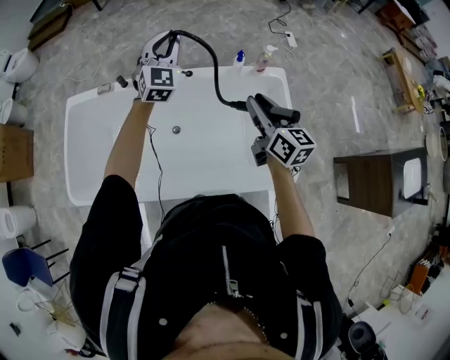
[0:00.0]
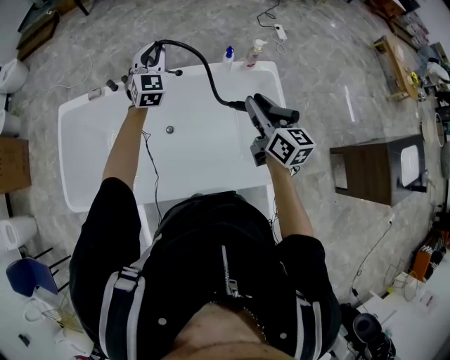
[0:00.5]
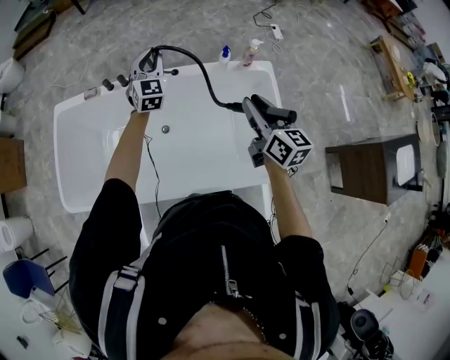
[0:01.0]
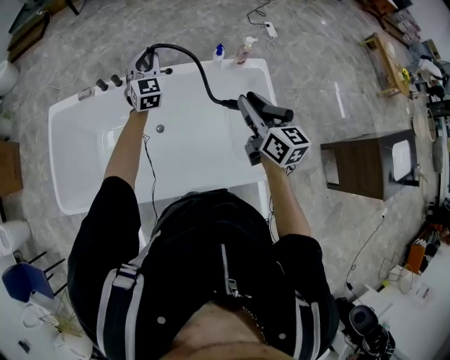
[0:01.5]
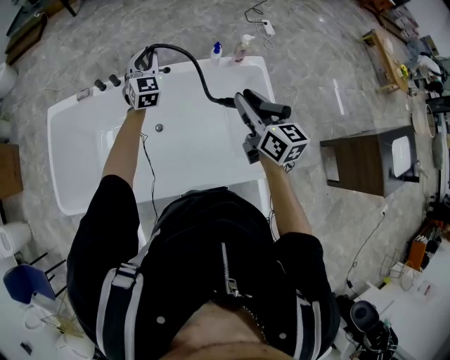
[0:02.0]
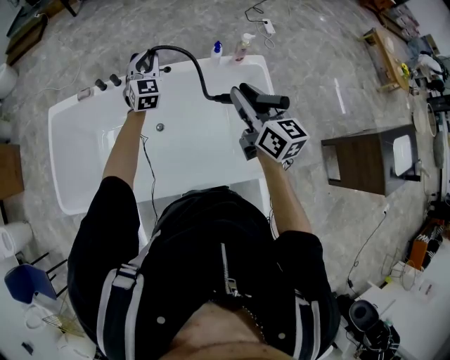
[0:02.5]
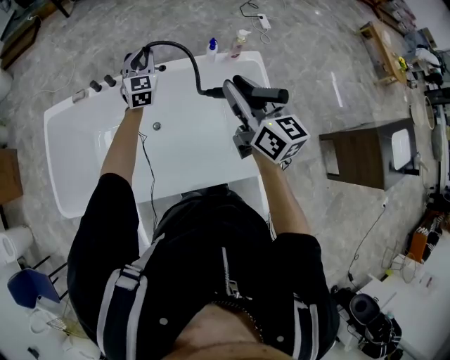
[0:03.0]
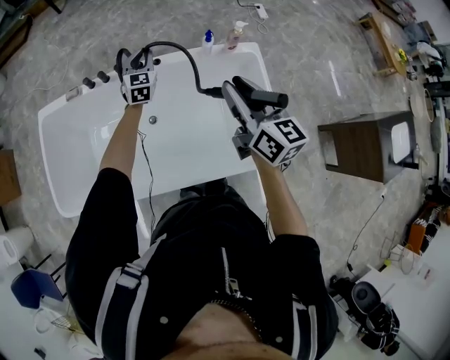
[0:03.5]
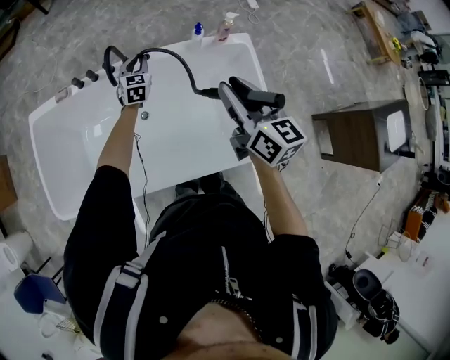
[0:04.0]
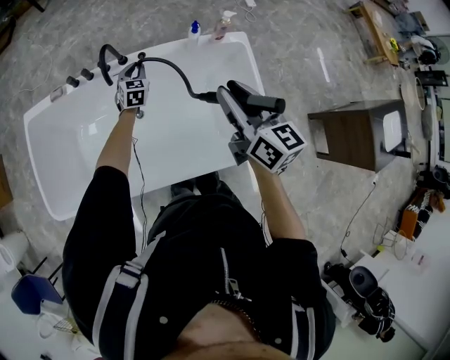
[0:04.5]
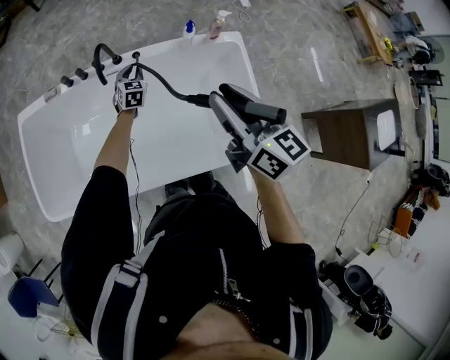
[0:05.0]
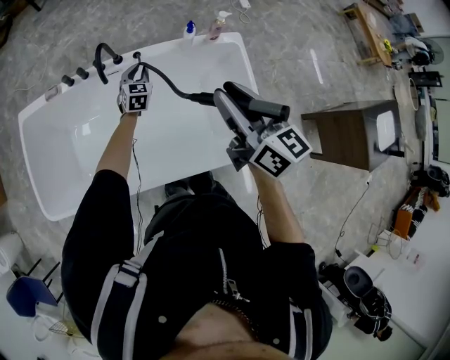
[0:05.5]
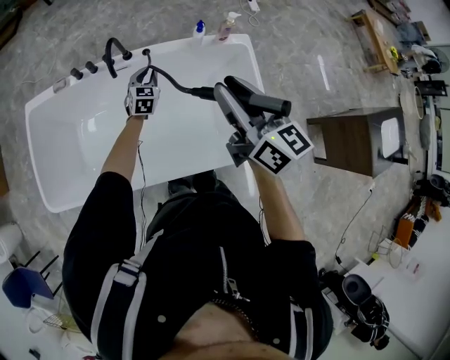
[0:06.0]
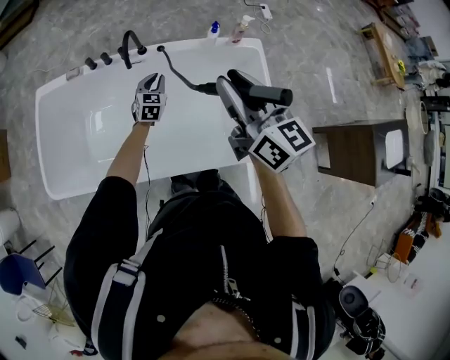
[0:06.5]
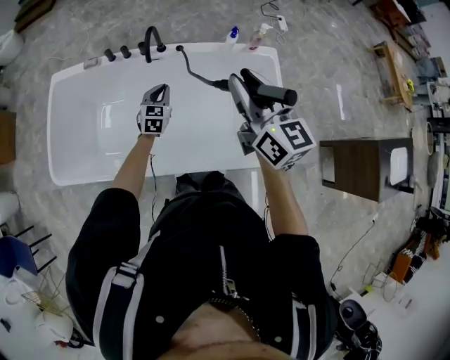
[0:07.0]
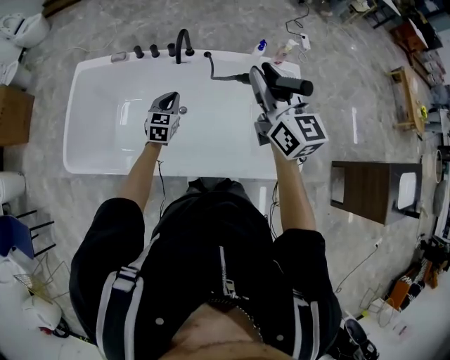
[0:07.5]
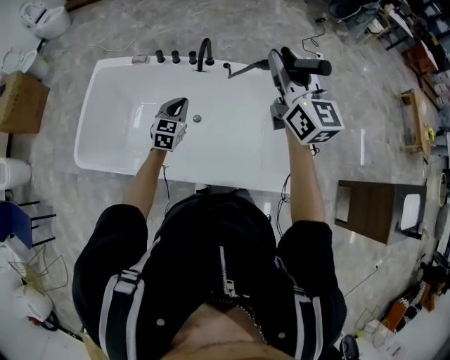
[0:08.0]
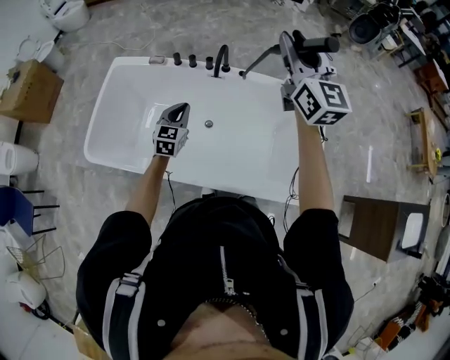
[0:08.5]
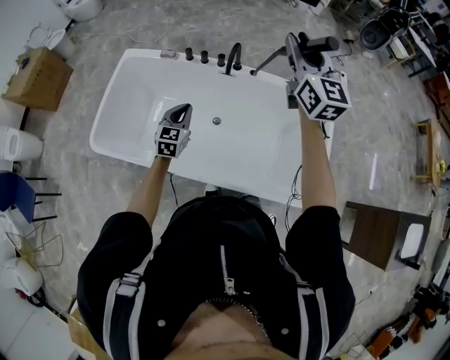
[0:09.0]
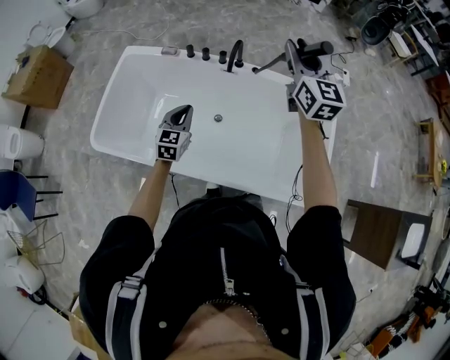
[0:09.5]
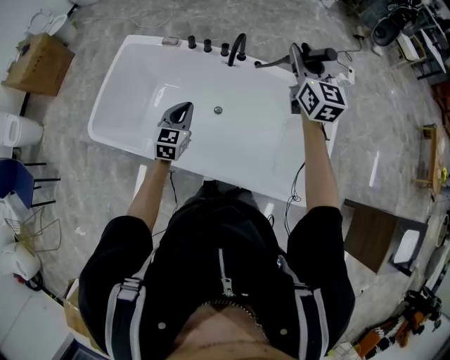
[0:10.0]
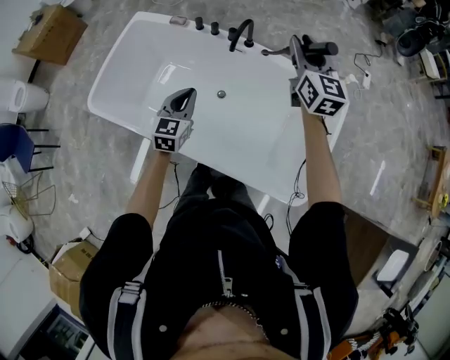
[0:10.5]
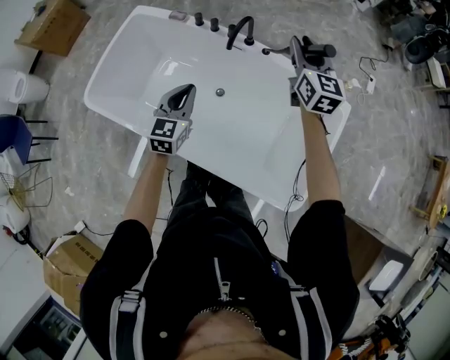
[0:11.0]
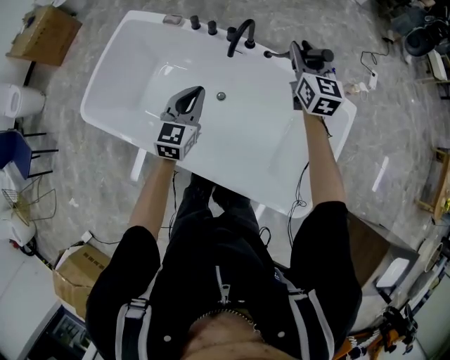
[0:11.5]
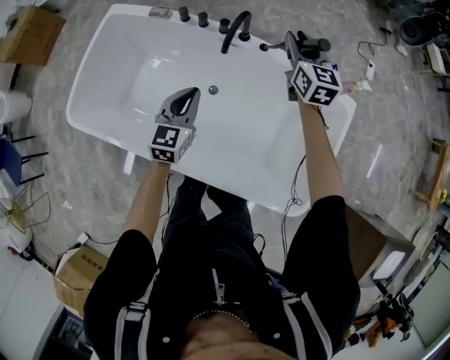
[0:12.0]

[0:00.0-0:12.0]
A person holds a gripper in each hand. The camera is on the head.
0:00.0 to 0:02.0: The left gripper travels downward by about 10 cm.
0:02.0 to 0:04.0: The left gripper is displaced downward by approximately 15 cm, and swivels approximately 20 degrees.
0:04.0 to 0:06.0: The right gripper shifts approximately 5 cm upward, while the left gripper is displaced backward by about 5 cm.
0:06.0 to 0:08.0: The left gripper goes roughly 25 cm to the left, backward and upward. Meanwhile the right gripper is displaced to the left, upward and forward by roughly 15 cm, and changes its angle by approximately 20 degrees.
0:08.0 to 0:10.0: The left gripper travels to the left by approximately 5 cm, while the right gripper moves forward and downward, roughly 15 cm.
0:10.0 to 0:12.0: The right gripper goes about 25 cm downward and forward. Meanwhile the left gripper heads to the right and forward, covering roughly 10 cm.

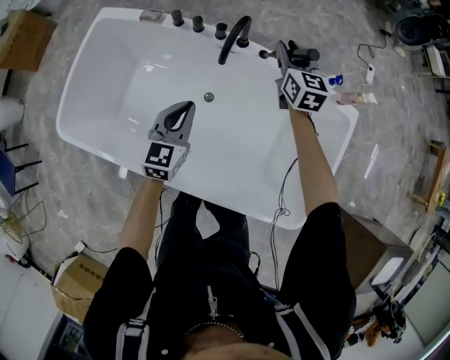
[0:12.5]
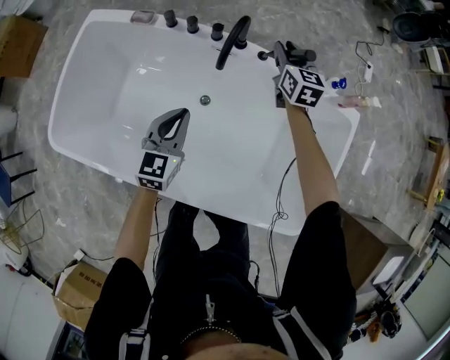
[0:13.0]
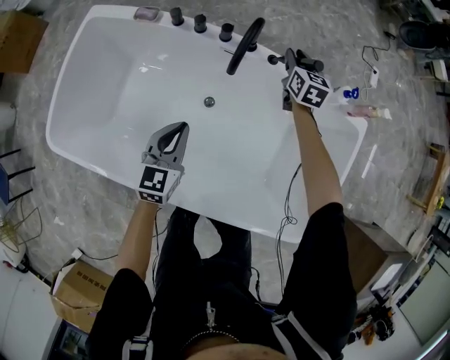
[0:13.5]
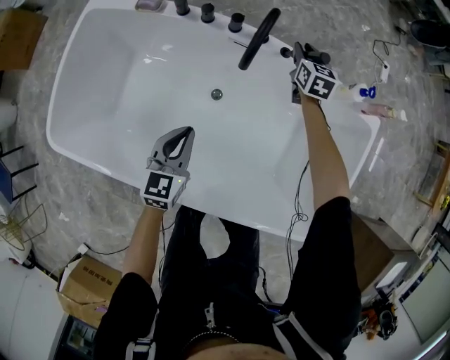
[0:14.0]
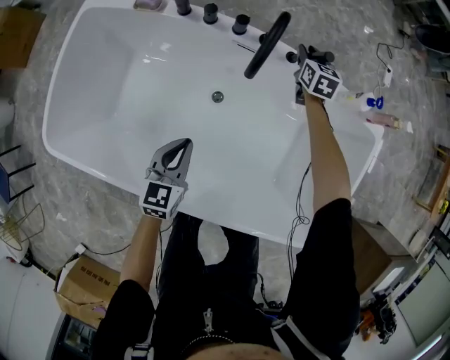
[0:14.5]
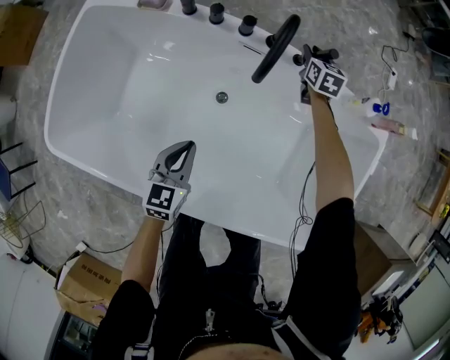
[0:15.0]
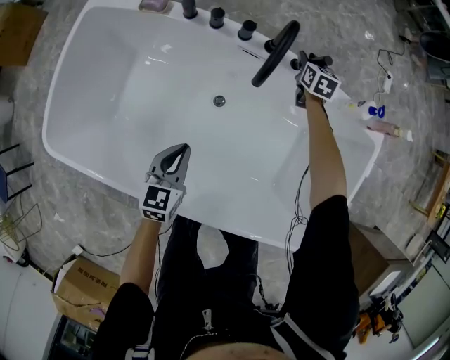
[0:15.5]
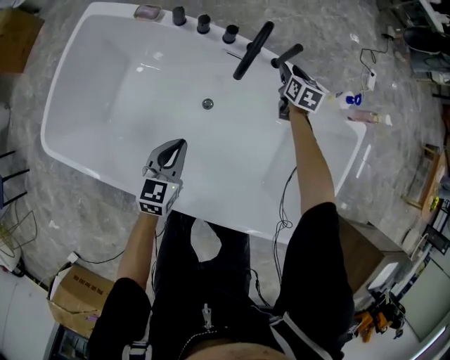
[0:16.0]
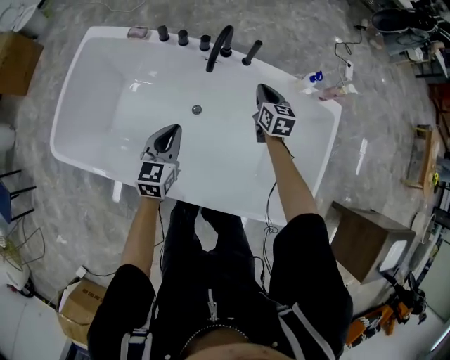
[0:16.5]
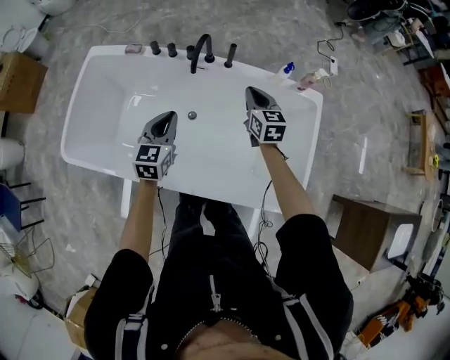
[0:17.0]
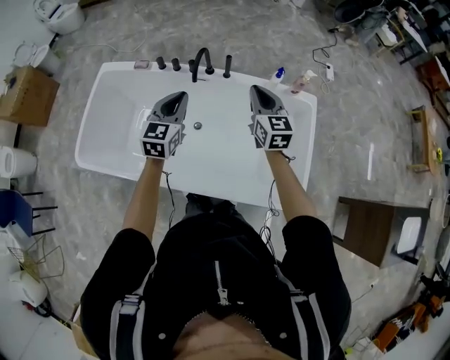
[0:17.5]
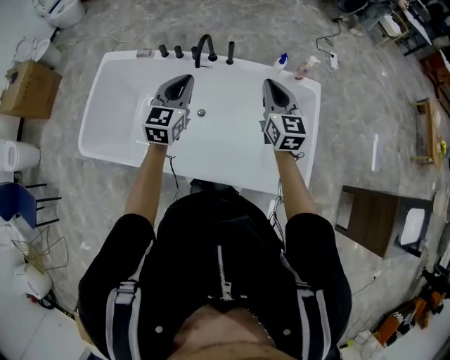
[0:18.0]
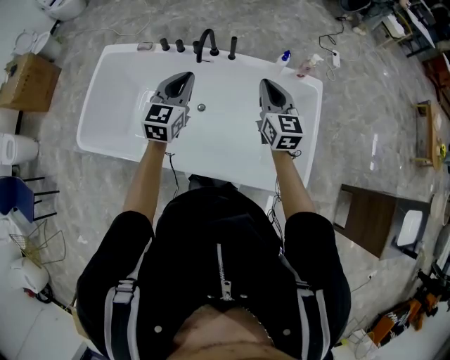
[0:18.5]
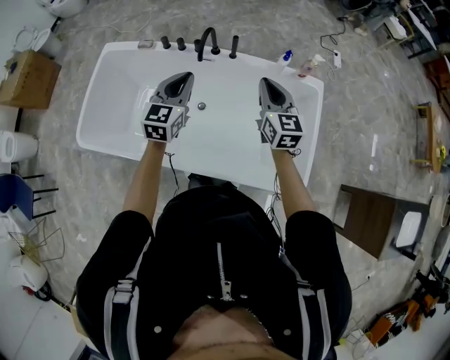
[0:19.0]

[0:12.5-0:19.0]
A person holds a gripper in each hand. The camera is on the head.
0:12.5 to 0:14.5: The right gripper travels downward and forward by roughly 25 cm; the left gripper is displaced downward by roughly 15 cm.
0:14.5 to 0:17.0: The left gripper moves upward, about 20 cm; the right gripper goes roughly 35 cm backward and upward, and closes up.
0:17.0 to 0:19.0: The left gripper travels upward by some 10 cm. The right gripper travels upward and backward by approximately 15 cm.

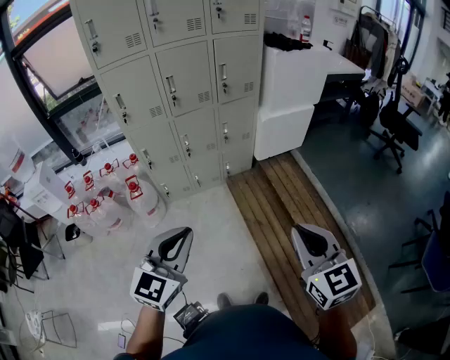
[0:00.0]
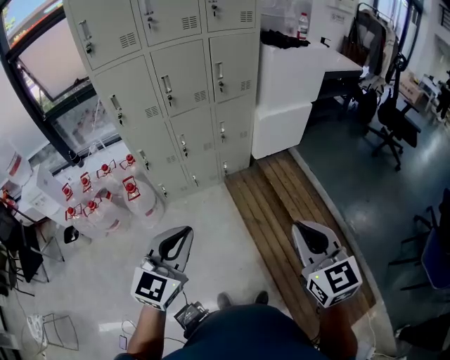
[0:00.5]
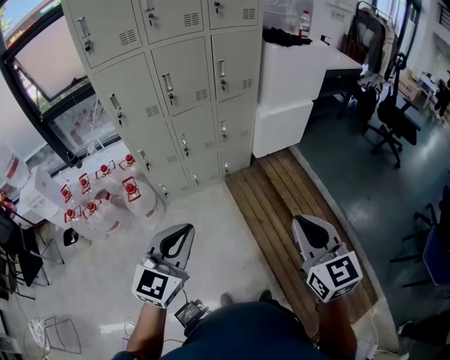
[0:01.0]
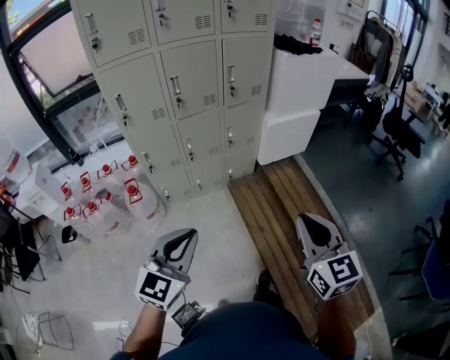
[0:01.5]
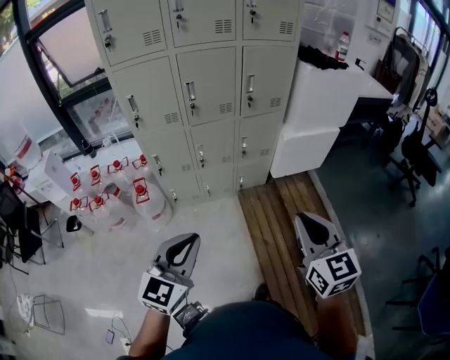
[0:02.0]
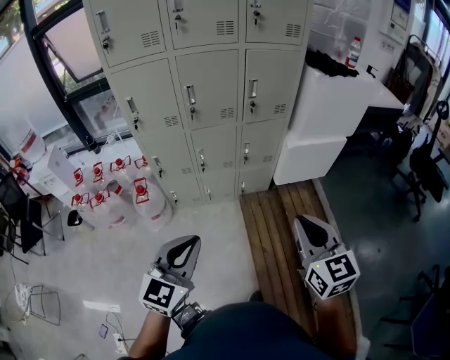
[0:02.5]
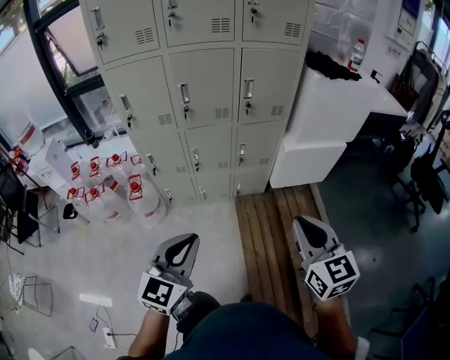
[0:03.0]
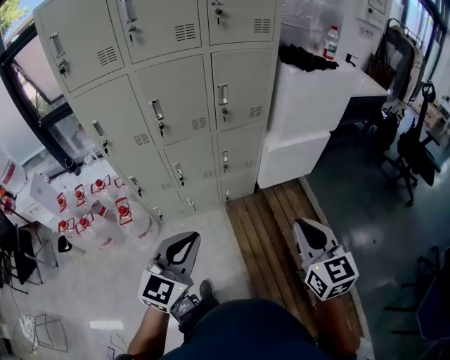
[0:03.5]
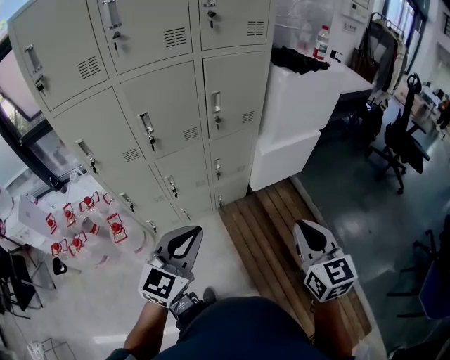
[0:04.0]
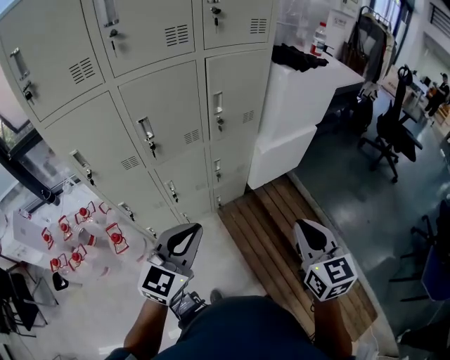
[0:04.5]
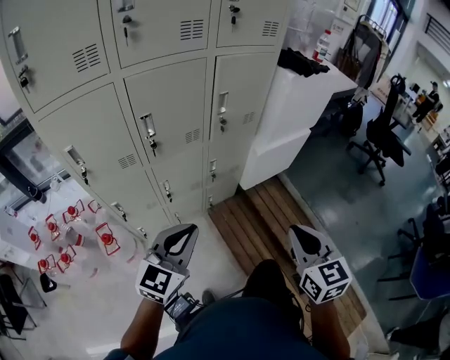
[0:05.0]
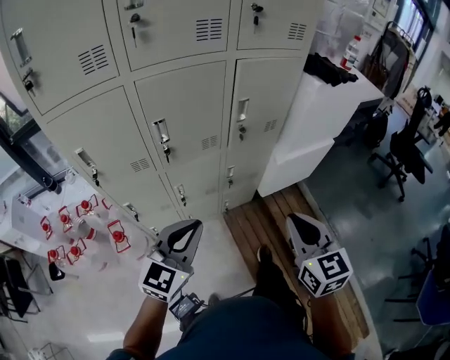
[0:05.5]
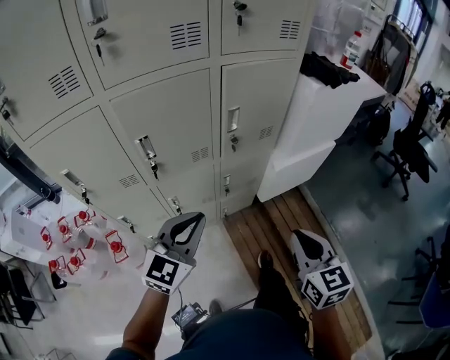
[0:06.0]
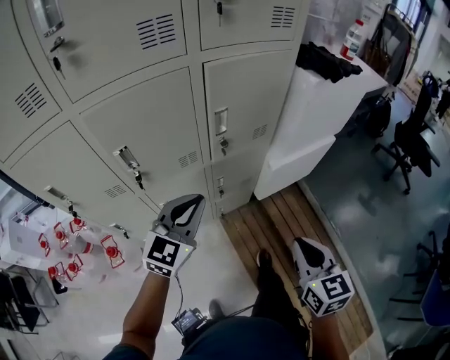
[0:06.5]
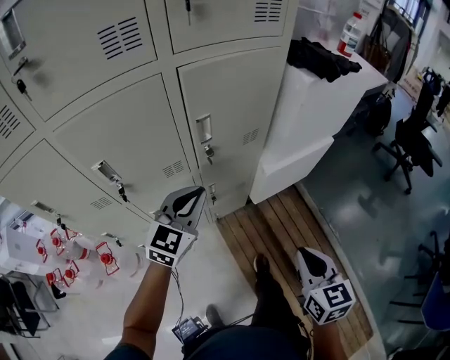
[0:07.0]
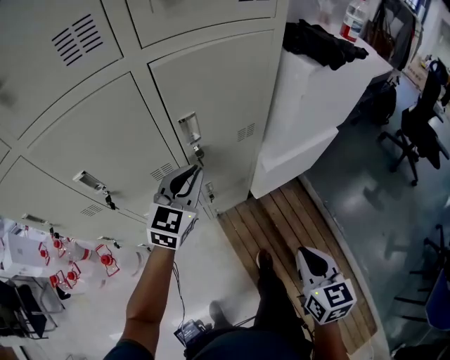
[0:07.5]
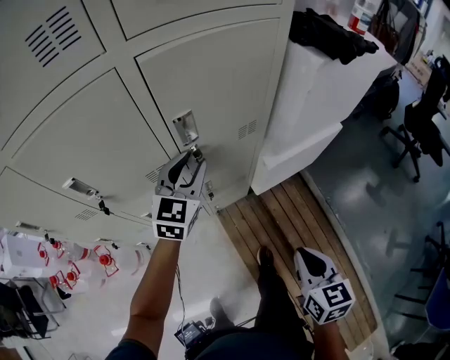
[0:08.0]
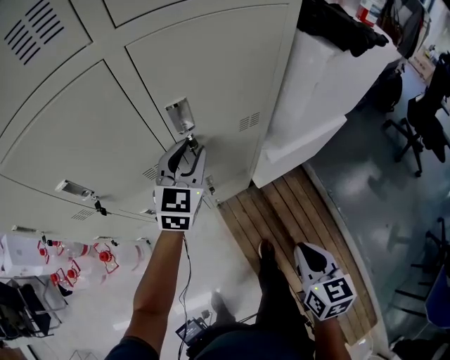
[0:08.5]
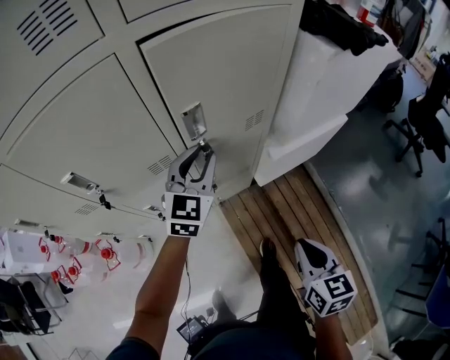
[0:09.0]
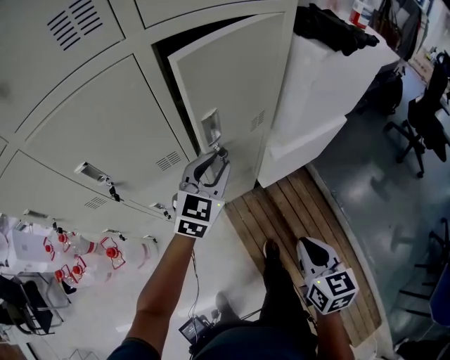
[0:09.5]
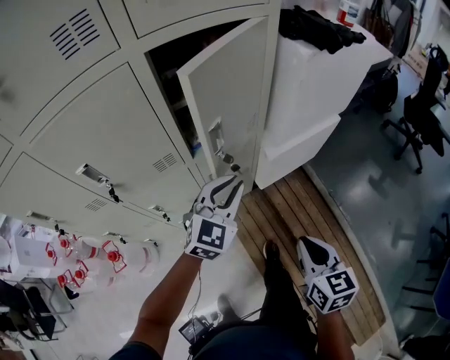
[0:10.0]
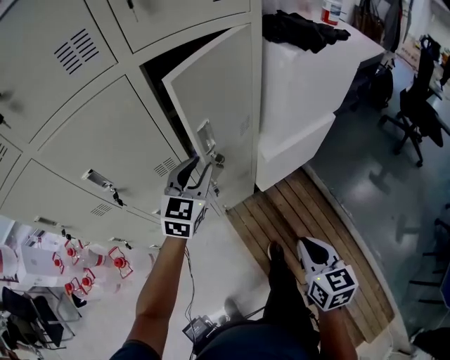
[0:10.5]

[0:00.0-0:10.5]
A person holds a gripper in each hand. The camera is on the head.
0:00.0 to 0:02.0: The left gripper shifts approximately 15 cm forward; the right gripper is displaced forward by about 20 cm.
0:02.0 to 0:04.0: The two grippers go roughly 20 cm forward.
0:04.0 to 0:06.5: The left gripper is displaced forward by some 30 cm, while the right gripper moves forward and downward, roughly 20 cm.
0:06.5 to 0:08.5: The left gripper heads forward, covering roughly 25 cm, and opens up, while the right gripper is displaced downward, forward and to the right by some 20 cm.
0:08.5 to 0:10.5: Both grippers travel together backward, some 10 cm.
